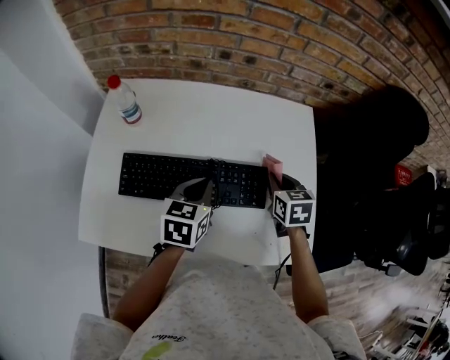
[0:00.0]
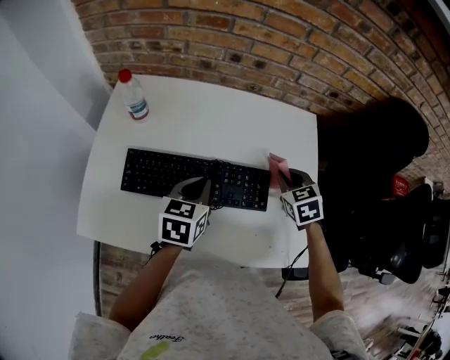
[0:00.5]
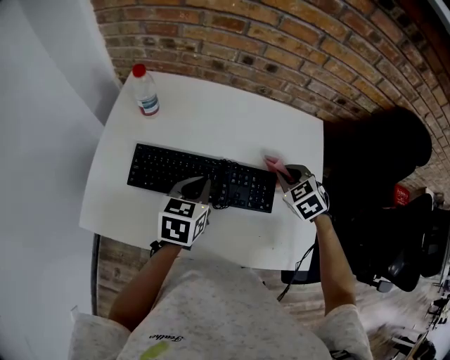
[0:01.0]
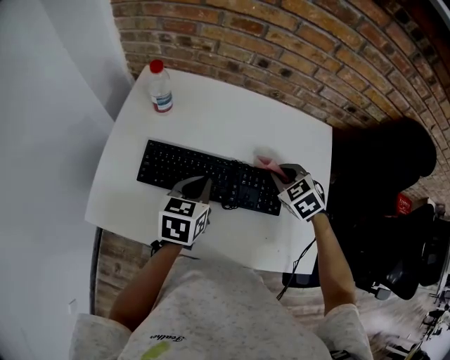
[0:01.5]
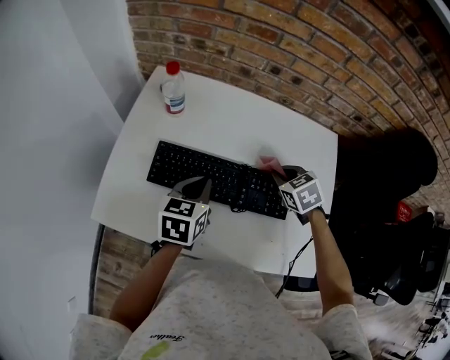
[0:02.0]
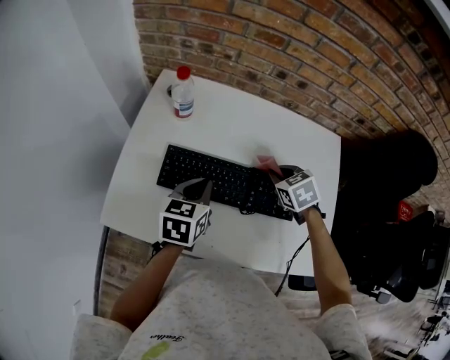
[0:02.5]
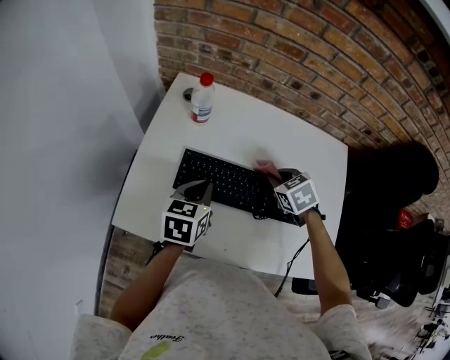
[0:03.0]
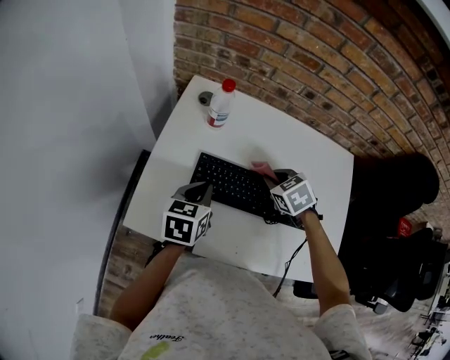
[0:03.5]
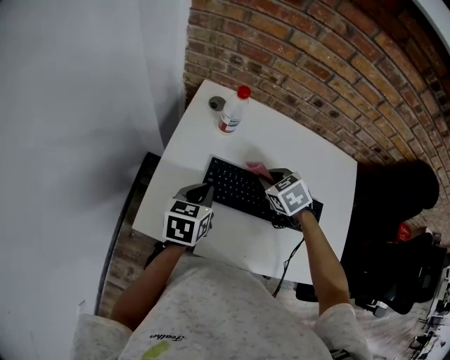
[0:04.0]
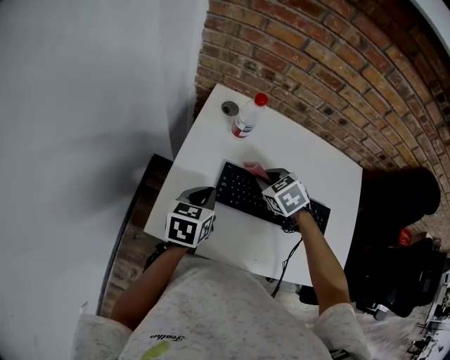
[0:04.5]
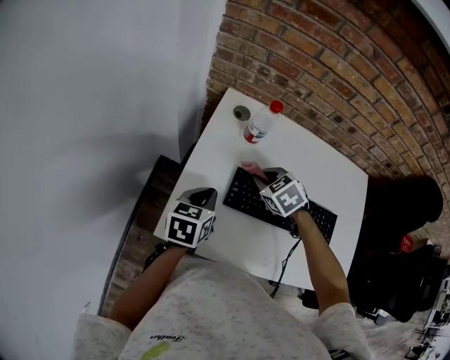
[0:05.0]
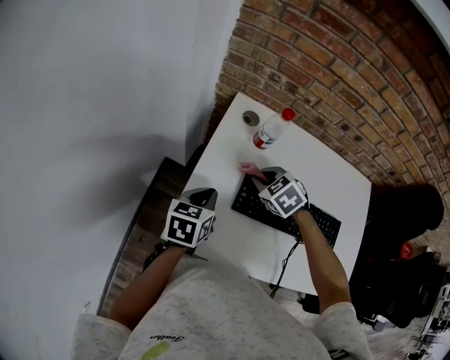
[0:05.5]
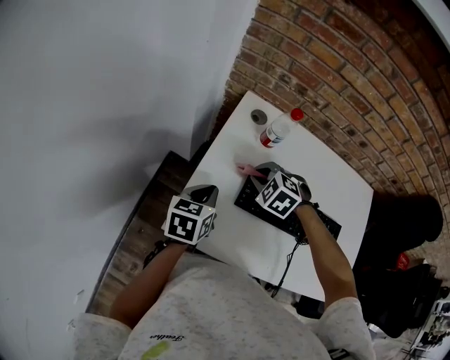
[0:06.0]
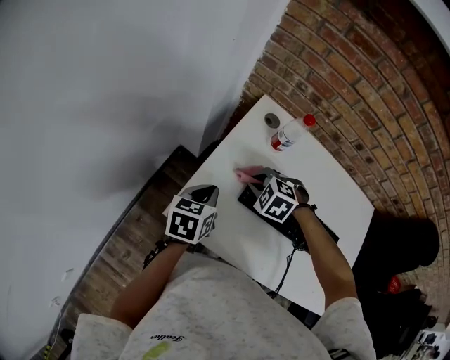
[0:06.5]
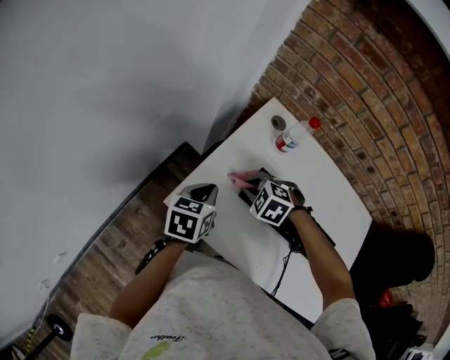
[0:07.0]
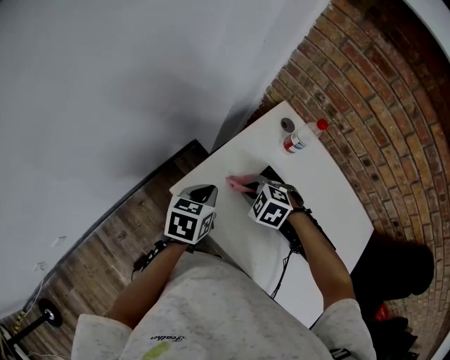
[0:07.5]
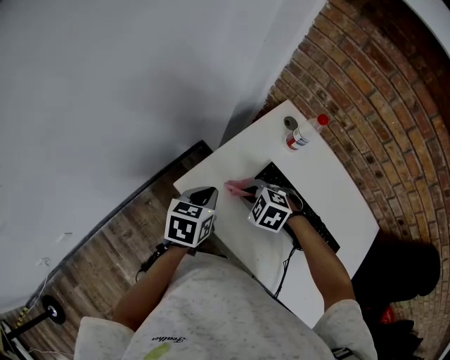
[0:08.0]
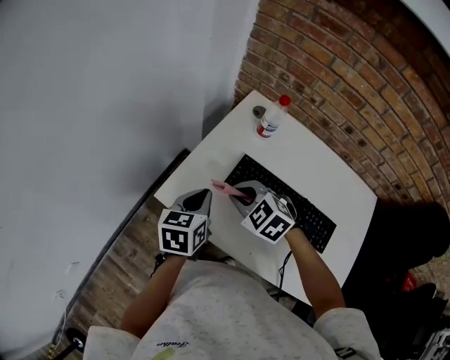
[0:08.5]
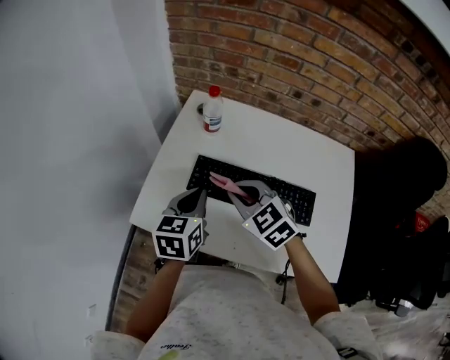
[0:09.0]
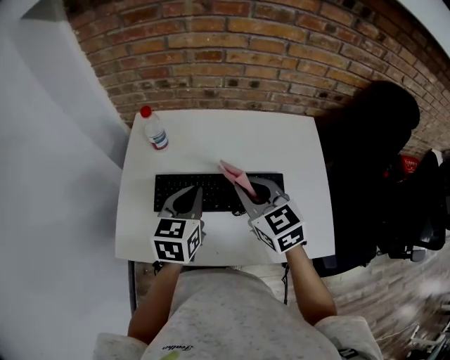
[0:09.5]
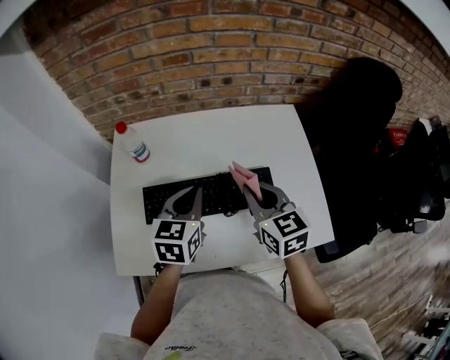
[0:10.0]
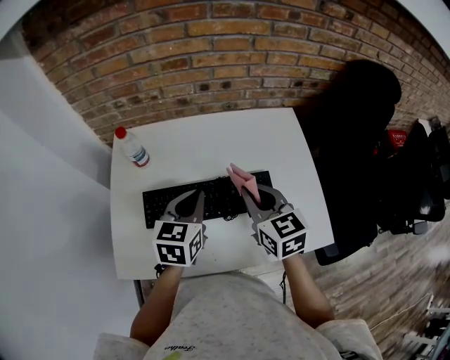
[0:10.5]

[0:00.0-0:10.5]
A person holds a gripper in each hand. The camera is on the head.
0:00.0 to 0:02.0: The grippers both shift to the left by some 10 cm. The right gripper rotates about 40 degrees.
0:02.0 to 0:04.0: Both grippers move to the left, about 20 cm.
0:04.0 to 0:06.5: The right gripper is displaced to the left by some 20 cm, and rotates around the line of its fingers by roughly 50 degrees, counterclockwise from behind; the left gripper goes approximately 10 cm to the left.
0:06.5 to 0:08.5: The left gripper heads backward, covering approximately 10 cm. Meanwhile the right gripper moves backward and upward, about 15 cm, and rotates about 20 degrees.
0:08.5 to 0:10.5: The left gripper changes place by about 25 cm, and changes its angle by roughly 40 degrees, while the right gripper ends up some 30 cm from where it was, and turns by about 80 degrees.

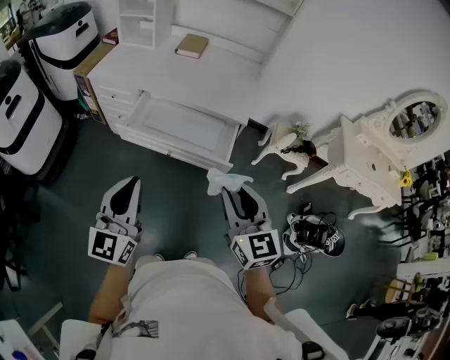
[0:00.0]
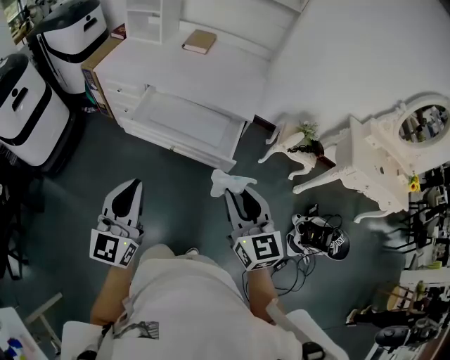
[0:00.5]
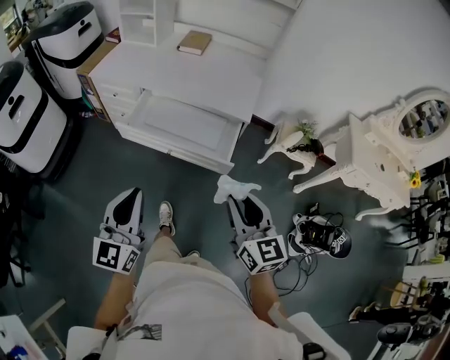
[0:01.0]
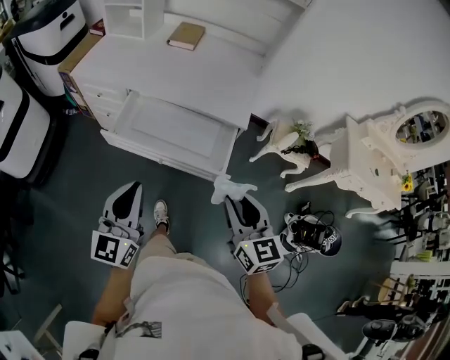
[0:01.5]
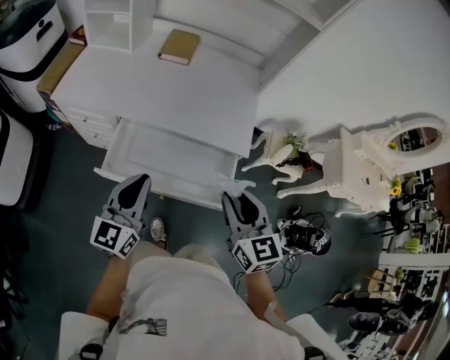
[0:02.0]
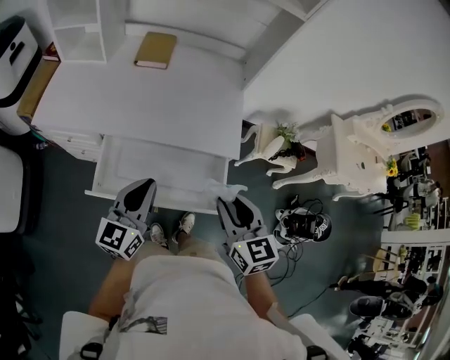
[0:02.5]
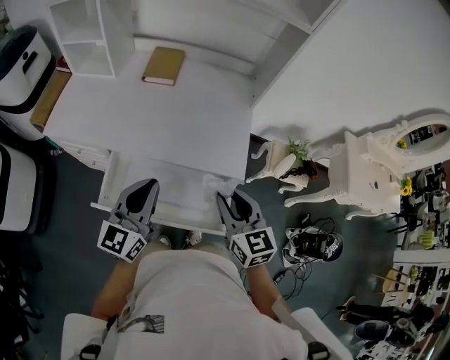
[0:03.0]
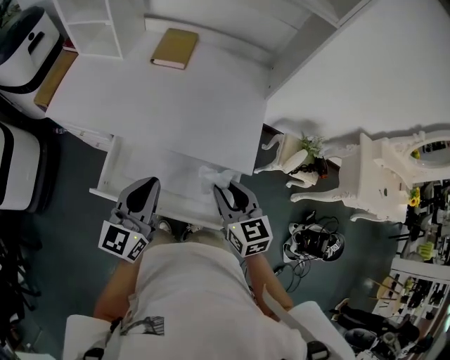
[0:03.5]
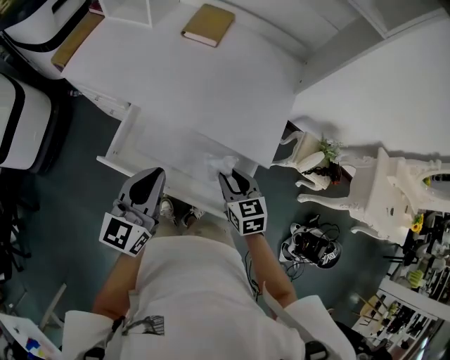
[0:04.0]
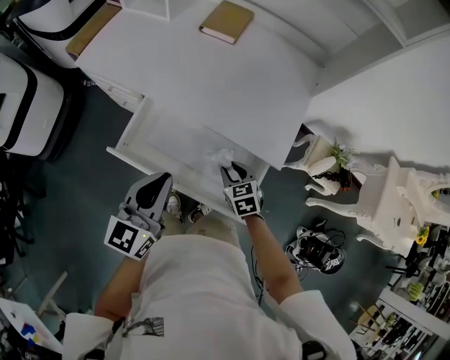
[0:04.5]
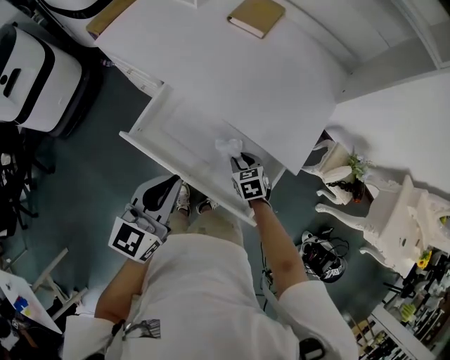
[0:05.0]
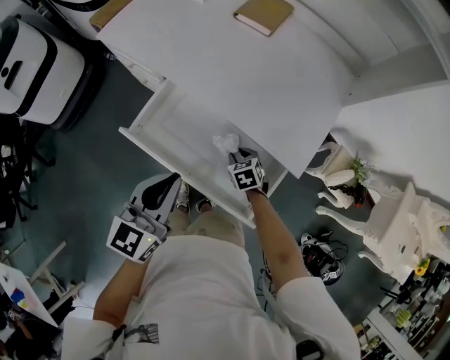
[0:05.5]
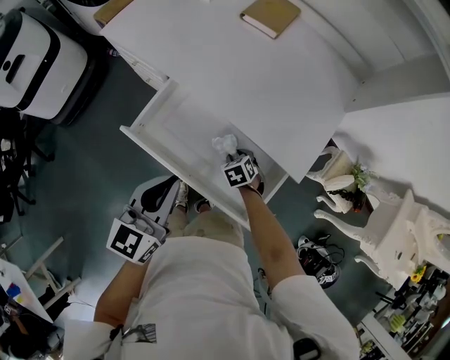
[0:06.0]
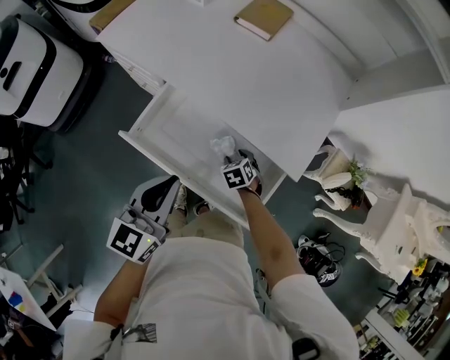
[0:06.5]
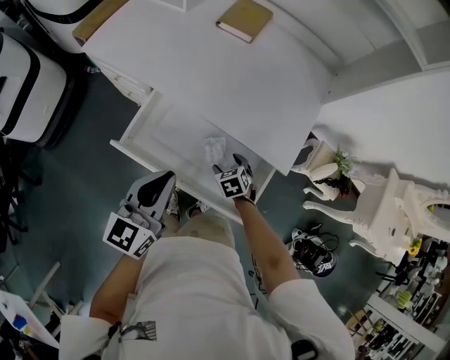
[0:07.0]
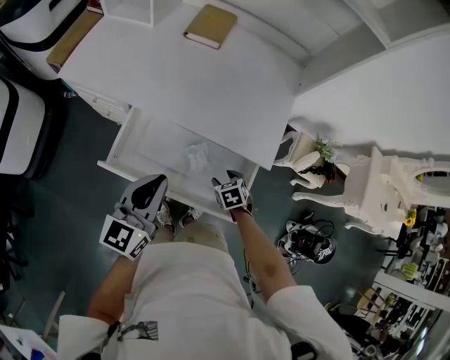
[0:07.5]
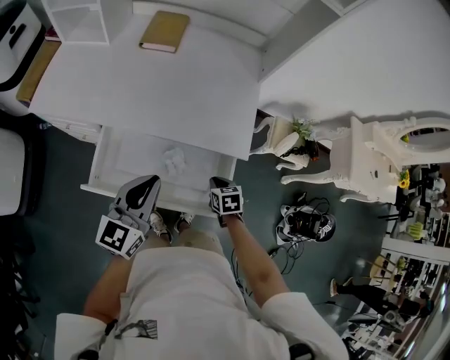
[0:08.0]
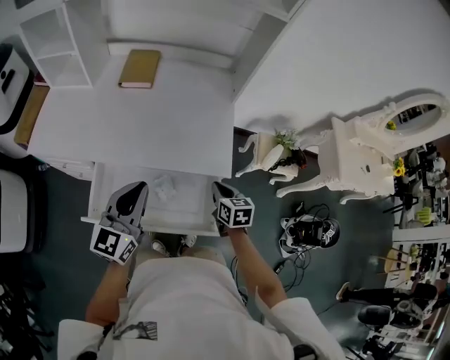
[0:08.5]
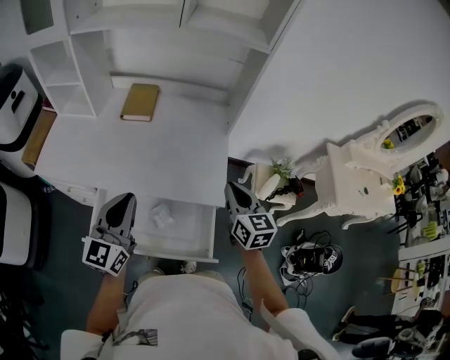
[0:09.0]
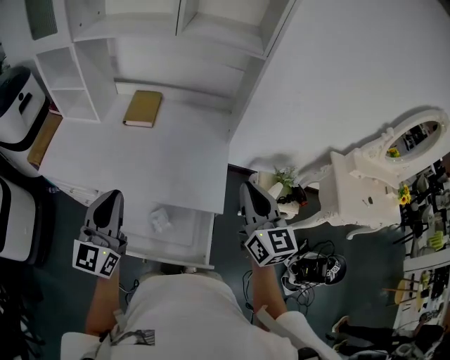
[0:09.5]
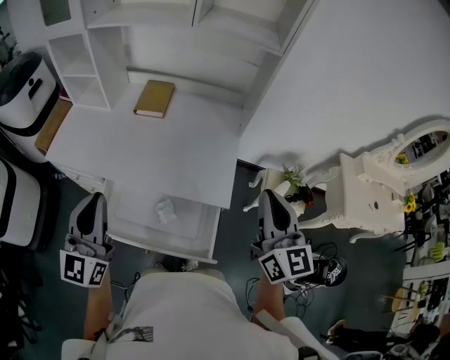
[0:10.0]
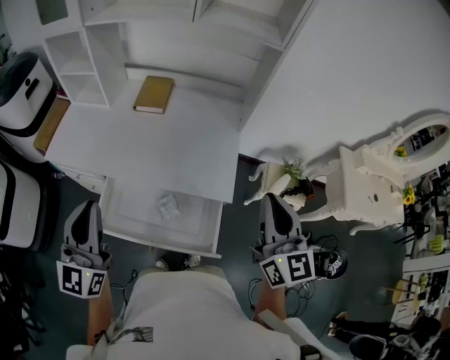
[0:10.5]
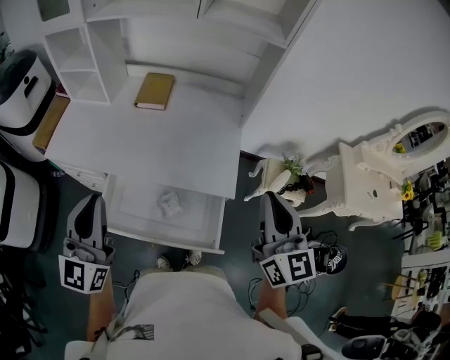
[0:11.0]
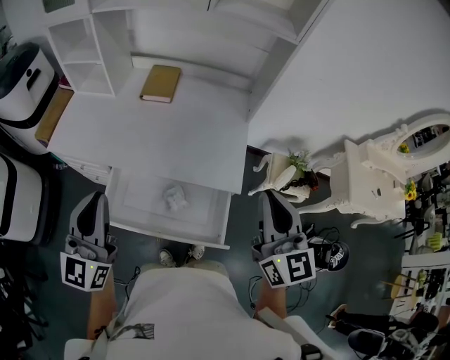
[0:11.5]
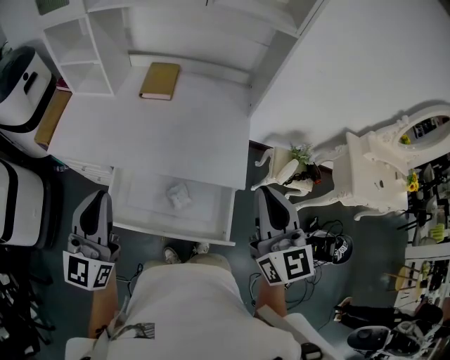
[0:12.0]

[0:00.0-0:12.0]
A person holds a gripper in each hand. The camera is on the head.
0:00.0 to 0:02.0: The two grippers go some 30 cm forward.
0:02.0 to 0:04.0: The right gripper moves downward and forward, approximately 25 cm, and turns by roughly 30 degrees, while the left gripper heads forward and to the right, covering roughly 10 cm.
0:04.0 to 0:06.0: The right gripper is displaced downward by some 20 cm, and tips its fingers downward by approximately 30 degrees.
0:06.0 to 0:08.0: The right gripper moves to the right, upward and backward, about 15 cm, twists some 40 degrees clockwise, seen from behind, and closes. Meanwhile the left gripper moves roughly 5 cm, and turns by some 30 degrees.
0:08.0 to 0:10.0: The left gripper heads upward, covering about 20 cm, and rotates about 30 degrees, while the right gripper travels upward by approximately 40 cm, and points its fingers some 60 degrees further upward.
0:10.0 to 0:12.0: The right gripper travels to the left by approximately 10 cm.

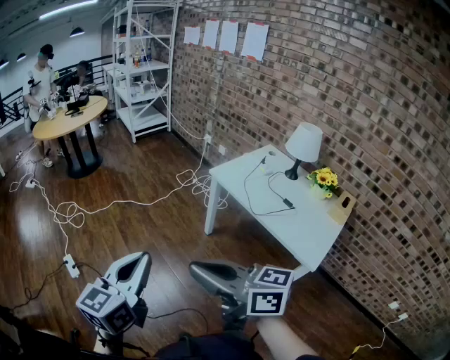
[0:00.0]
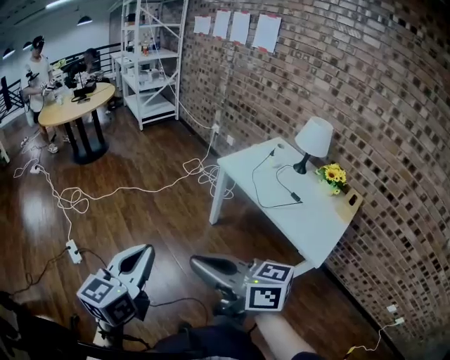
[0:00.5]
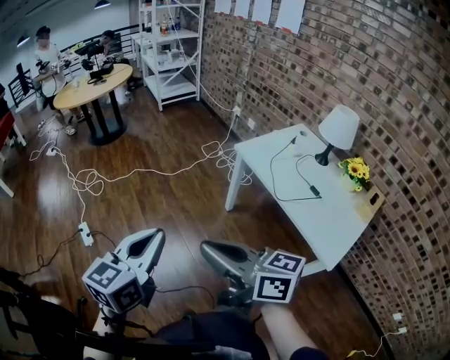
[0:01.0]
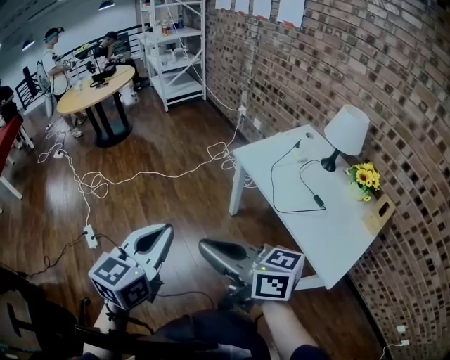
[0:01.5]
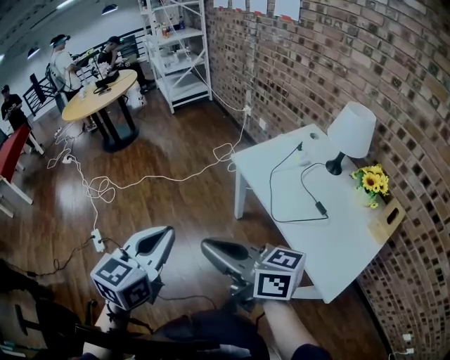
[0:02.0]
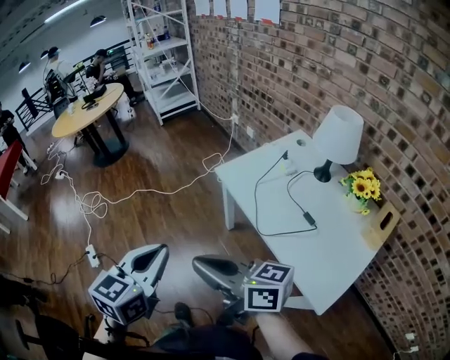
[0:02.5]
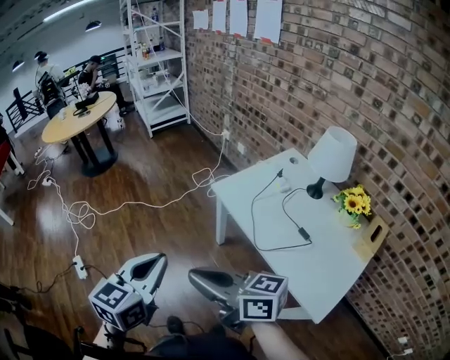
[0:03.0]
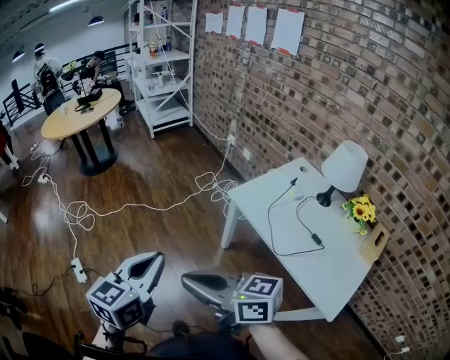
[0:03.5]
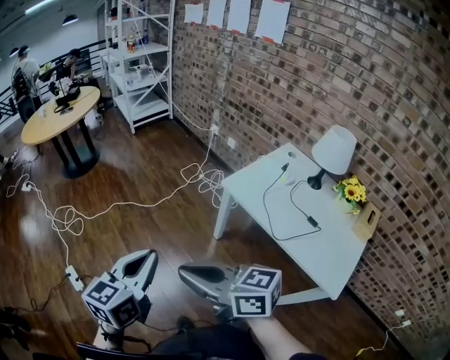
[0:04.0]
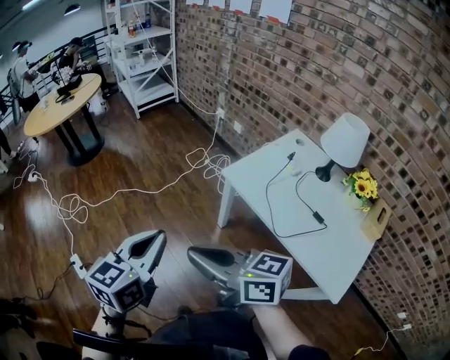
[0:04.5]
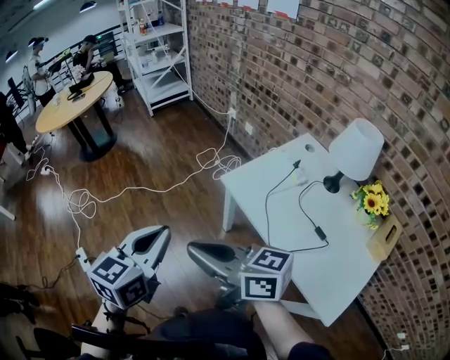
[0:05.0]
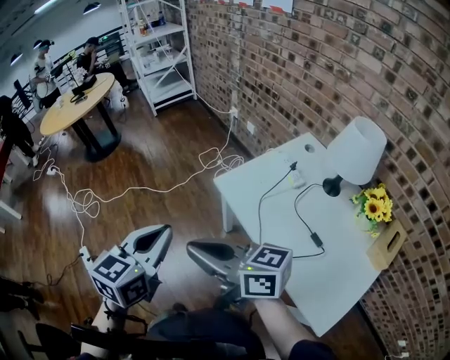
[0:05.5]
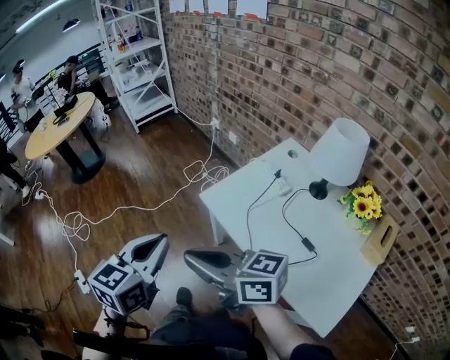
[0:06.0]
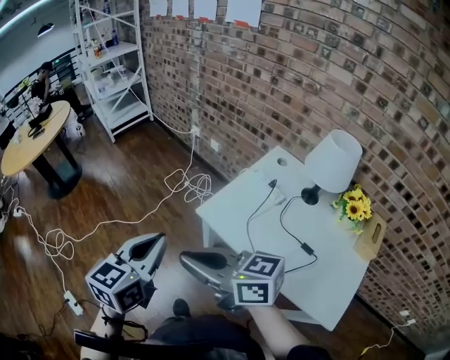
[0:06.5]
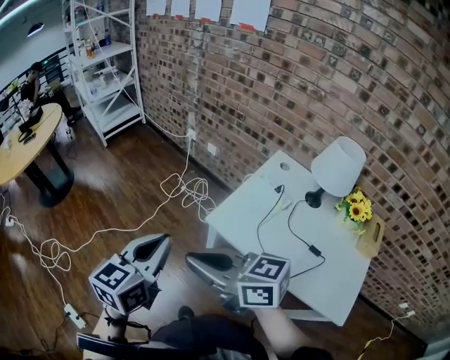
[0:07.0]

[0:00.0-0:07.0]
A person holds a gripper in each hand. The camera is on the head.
0:00.0 to 0:02.0: The grippers both shift to the right and forward by about 20 cm.
0:02.0 to 0:03.5: The right gripper travels to the left and forward by some 10 cm. The left gripper is displaced forward and to the left by some 10 cm.
0:03.5 to 0:05.0: Both grippers travel together to the right and forward, about 15 cm.
0:05.0 to 0:07.0: The grippers both shift forward by roughly 15 cm.
